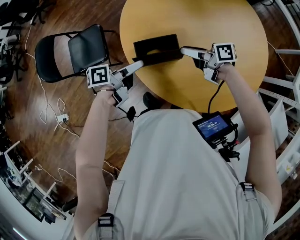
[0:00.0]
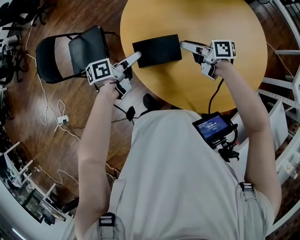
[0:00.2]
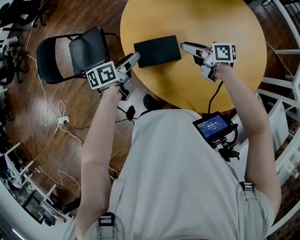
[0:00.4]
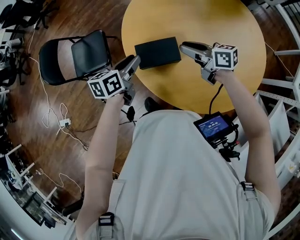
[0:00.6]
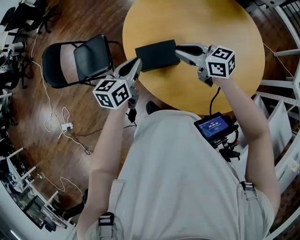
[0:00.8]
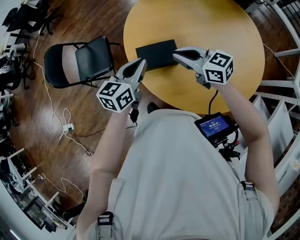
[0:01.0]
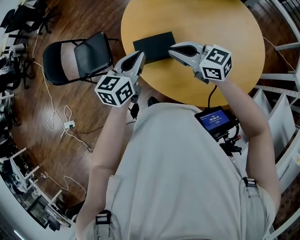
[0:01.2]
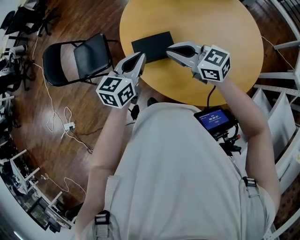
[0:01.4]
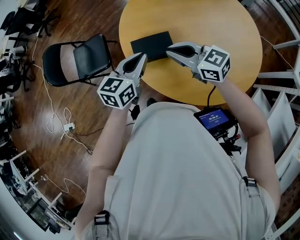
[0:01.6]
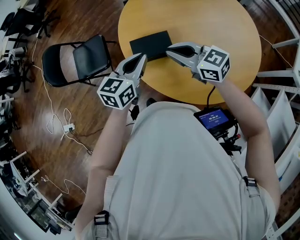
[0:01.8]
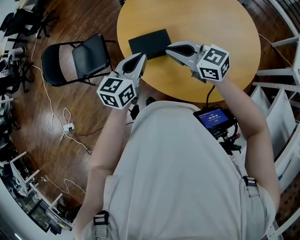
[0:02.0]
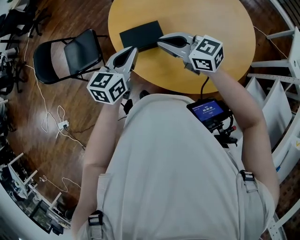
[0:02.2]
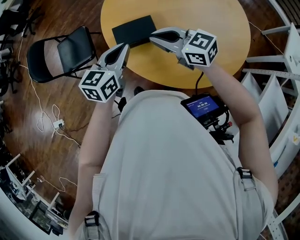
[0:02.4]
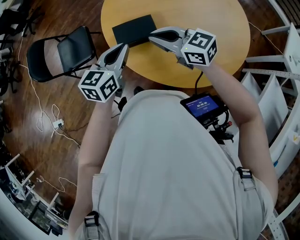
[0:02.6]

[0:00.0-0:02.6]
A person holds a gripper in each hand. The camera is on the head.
0:00.0 to 0:01.2: Both grippers move upward, about 10 cm. The left gripper twists roughly 50 degrees clockwise, seen from behind, and closes its fingers; the right gripper rotates around the line of its fingers by roughly 50 degrees, counterclockwise from behind, and closes up.
0:01.2 to 0:02.6: The grippers move only a little.

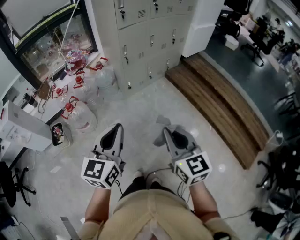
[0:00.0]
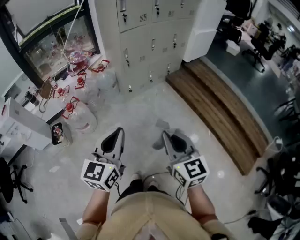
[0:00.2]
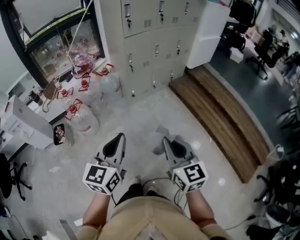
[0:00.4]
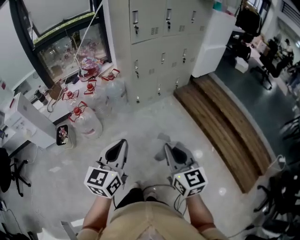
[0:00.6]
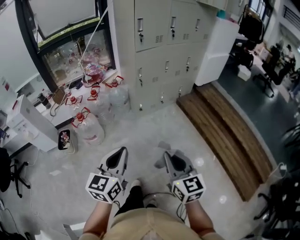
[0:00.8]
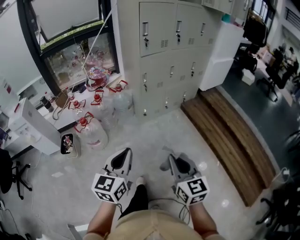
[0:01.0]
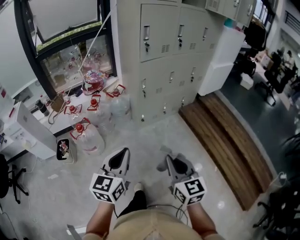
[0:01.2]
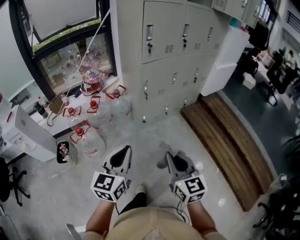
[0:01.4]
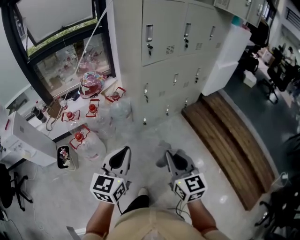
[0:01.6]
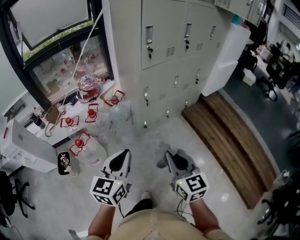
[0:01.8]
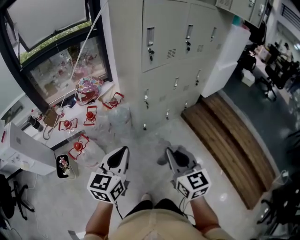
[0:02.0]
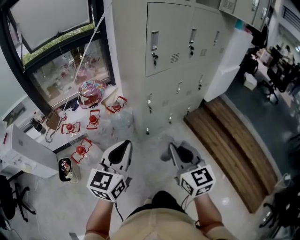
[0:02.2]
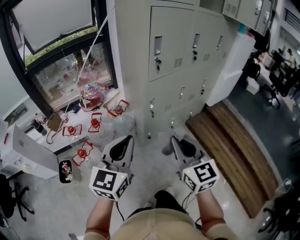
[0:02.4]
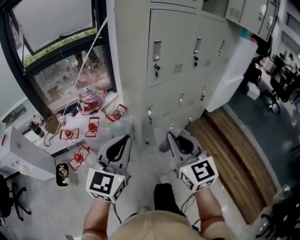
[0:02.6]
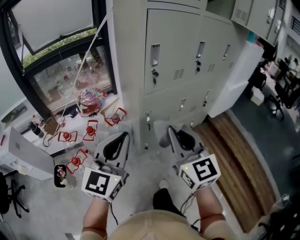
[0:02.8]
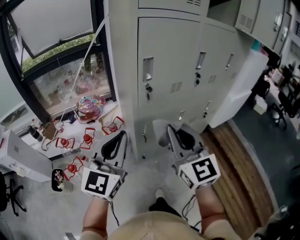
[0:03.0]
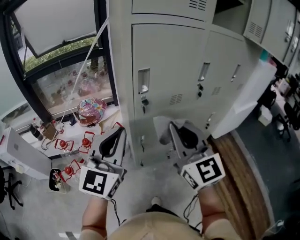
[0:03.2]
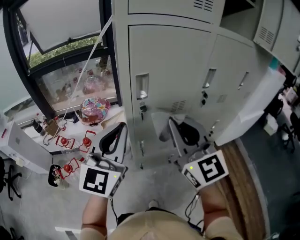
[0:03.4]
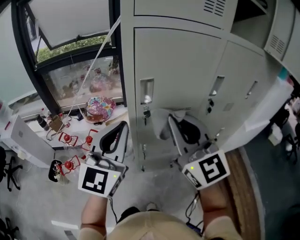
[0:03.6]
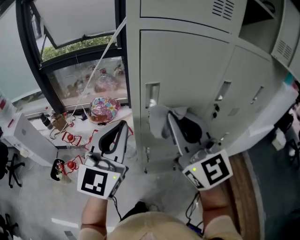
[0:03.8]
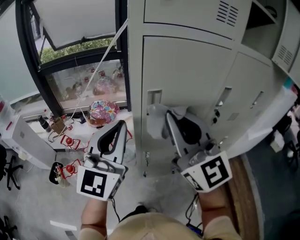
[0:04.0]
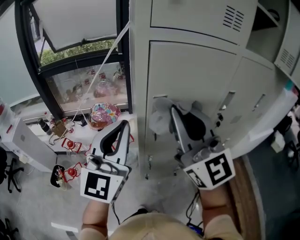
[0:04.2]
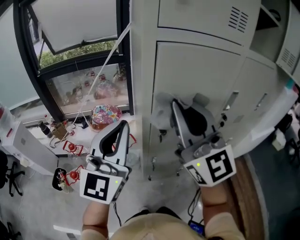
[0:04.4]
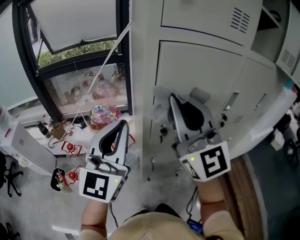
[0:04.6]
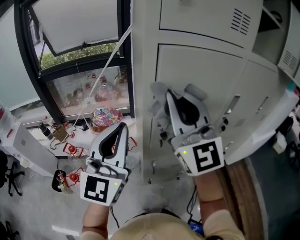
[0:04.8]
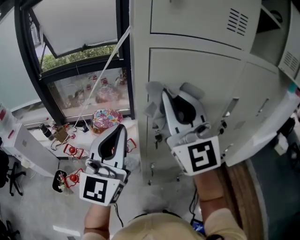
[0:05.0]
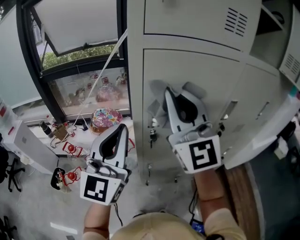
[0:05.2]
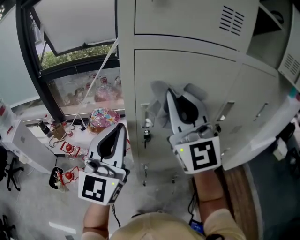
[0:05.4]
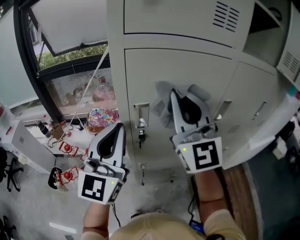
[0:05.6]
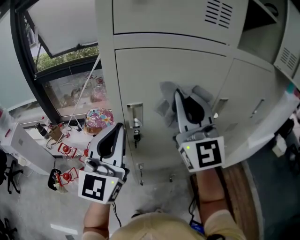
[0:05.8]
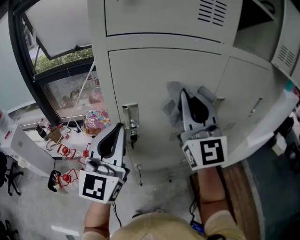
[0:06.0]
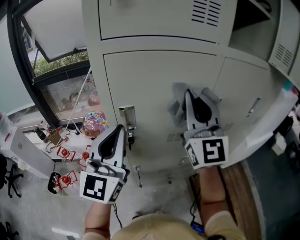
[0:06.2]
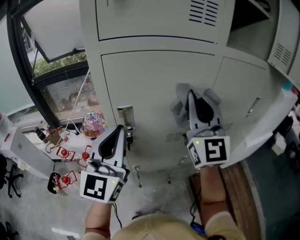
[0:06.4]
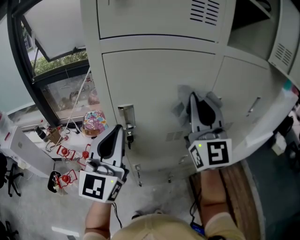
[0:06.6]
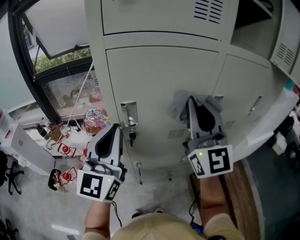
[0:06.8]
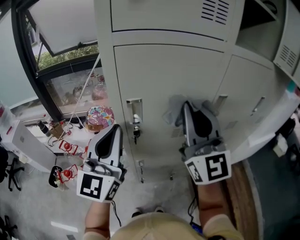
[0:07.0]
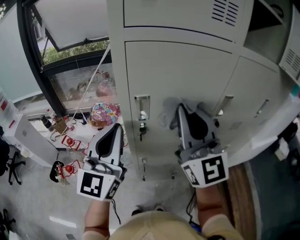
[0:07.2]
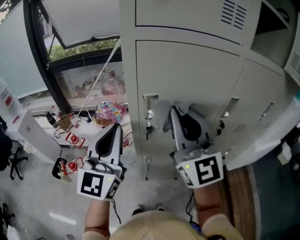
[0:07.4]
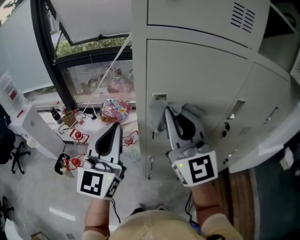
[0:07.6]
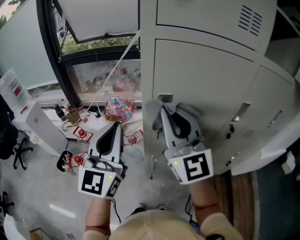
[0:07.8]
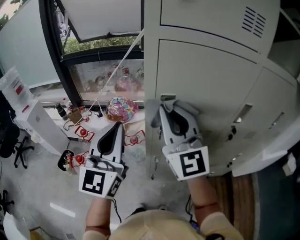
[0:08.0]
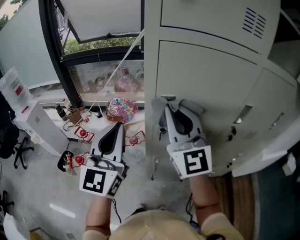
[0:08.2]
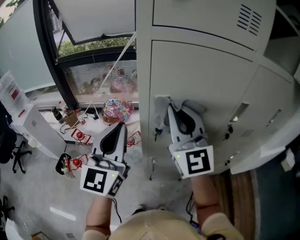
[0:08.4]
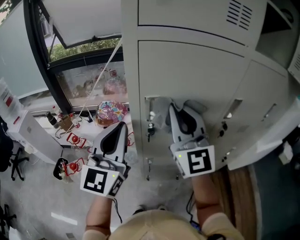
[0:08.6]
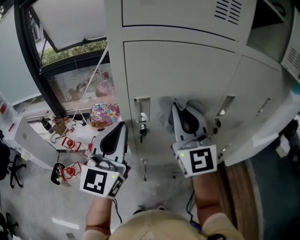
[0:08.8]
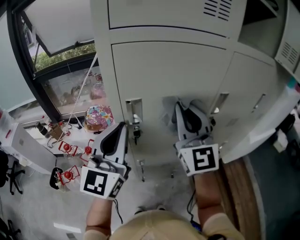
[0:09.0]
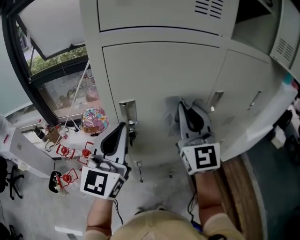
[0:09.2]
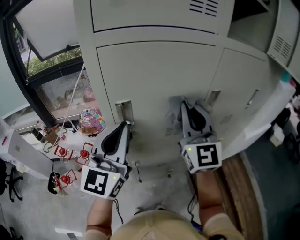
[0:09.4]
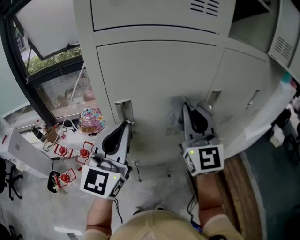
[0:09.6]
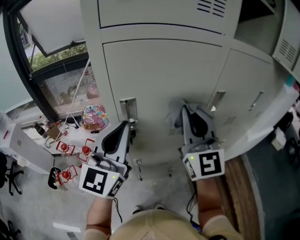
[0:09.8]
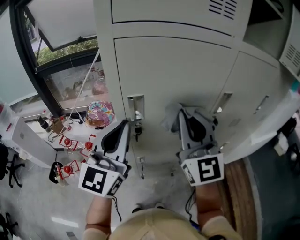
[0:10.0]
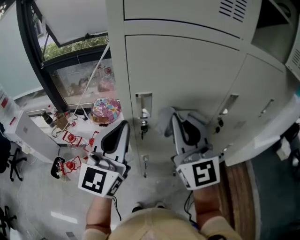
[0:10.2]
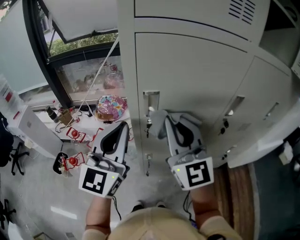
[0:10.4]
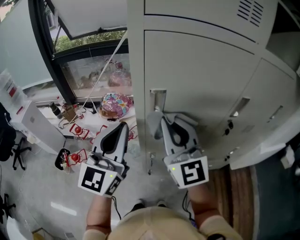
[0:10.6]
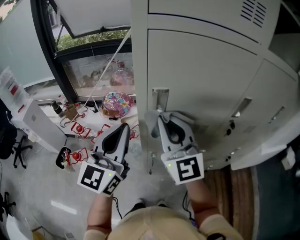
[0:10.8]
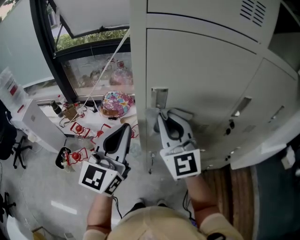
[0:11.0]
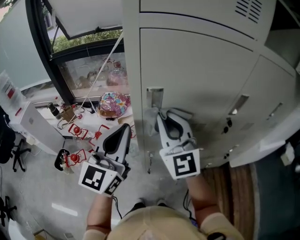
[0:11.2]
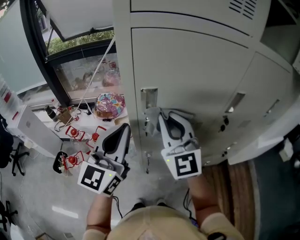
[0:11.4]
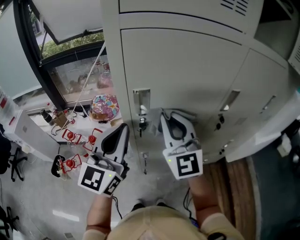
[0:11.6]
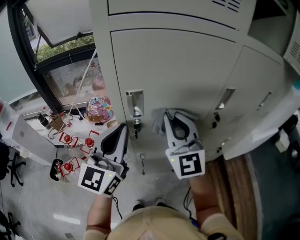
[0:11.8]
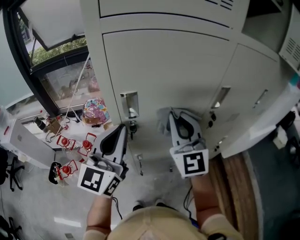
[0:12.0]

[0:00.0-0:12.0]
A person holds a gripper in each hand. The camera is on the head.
0:00.0 to 0:01.6: Both grippers move forward, roughly 20 cm.
0:01.6 to 0:03.0: Both grippers travel together forward and upward, approximately 35 cm. The left gripper rotates some 20 degrees, while the right gripper turns by about 20 degrees.
0:03.0 to 0:04.4: The left gripper moves forward and upward, some 15 cm; the right gripper moves upward and forward, some 20 cm, and changes its angle by about 30 degrees.
0:04.4 to 0:06.0: The left gripper heads to the right, covering some 10 cm, while the right gripper moves to the right and forward, roughly 15 cm.
0:06.0 to 0:07.6: The right gripper is displaced to the left and backward by about 10 cm. Meanwhile the left gripper travels to the left by roughly 10 cm.
0:07.6 to 0:09.0: The grippers both shift to the right by roughly 10 cm.
0:09.0 to 0:10.4: The right gripper is displaced to the left by approximately 5 cm.
0:10.4 to 0:12.0: The right gripper moves to the right, approximately 5 cm, while the left gripper changes place by approximately 5 cm.

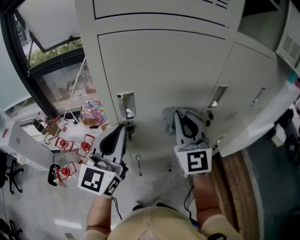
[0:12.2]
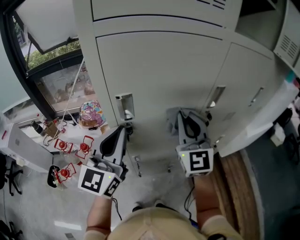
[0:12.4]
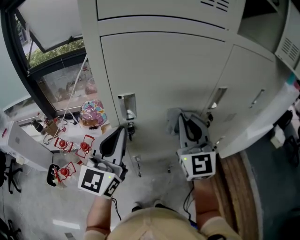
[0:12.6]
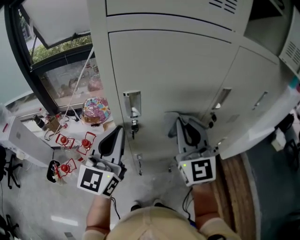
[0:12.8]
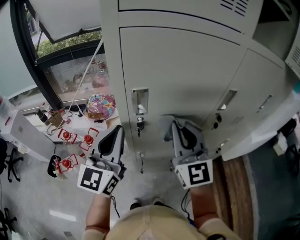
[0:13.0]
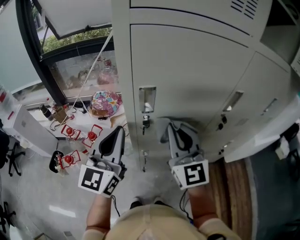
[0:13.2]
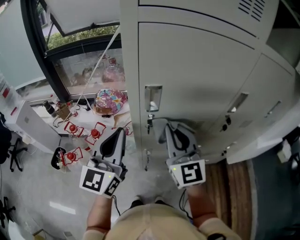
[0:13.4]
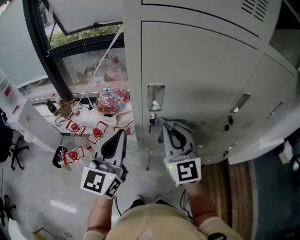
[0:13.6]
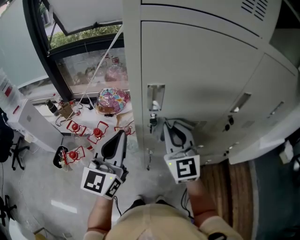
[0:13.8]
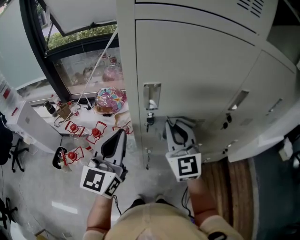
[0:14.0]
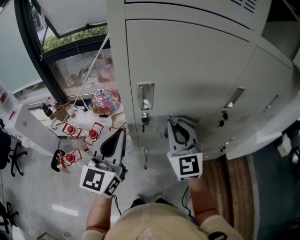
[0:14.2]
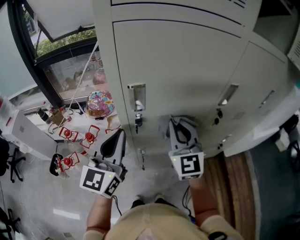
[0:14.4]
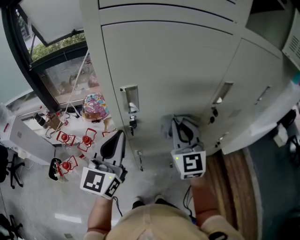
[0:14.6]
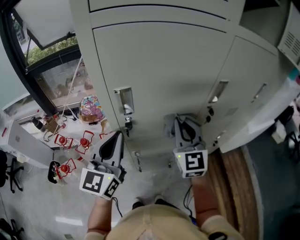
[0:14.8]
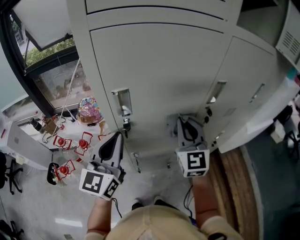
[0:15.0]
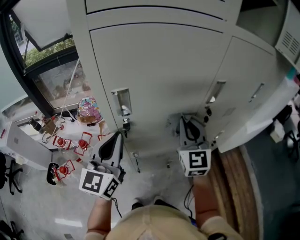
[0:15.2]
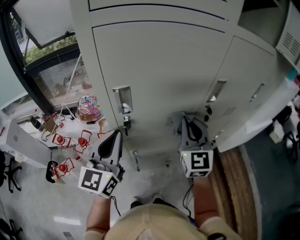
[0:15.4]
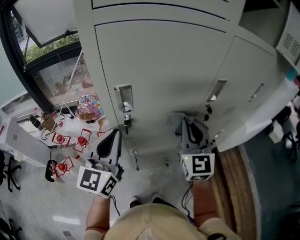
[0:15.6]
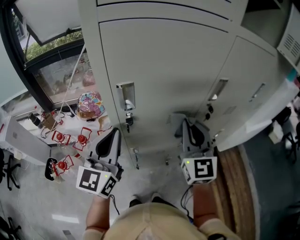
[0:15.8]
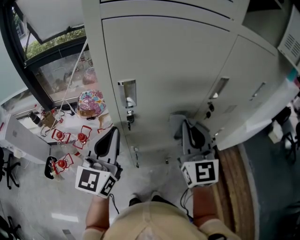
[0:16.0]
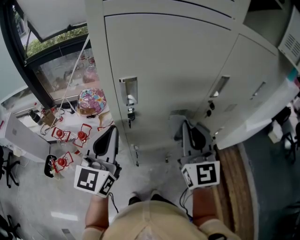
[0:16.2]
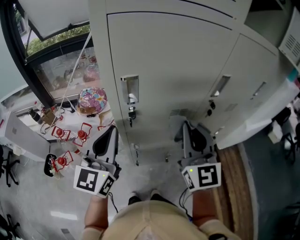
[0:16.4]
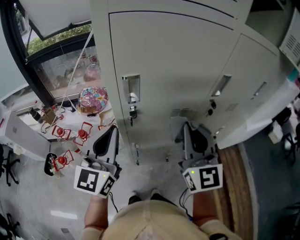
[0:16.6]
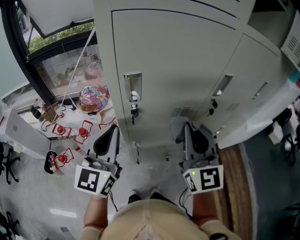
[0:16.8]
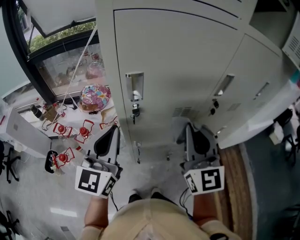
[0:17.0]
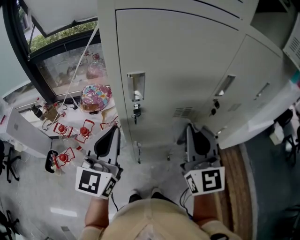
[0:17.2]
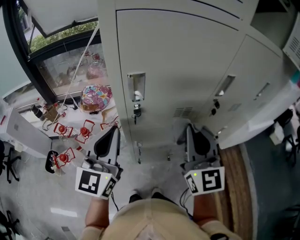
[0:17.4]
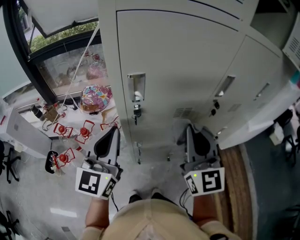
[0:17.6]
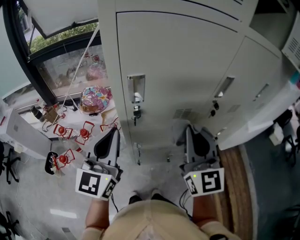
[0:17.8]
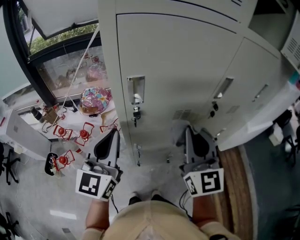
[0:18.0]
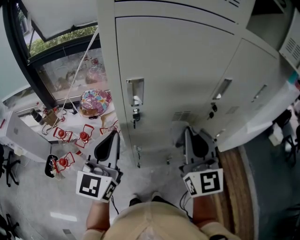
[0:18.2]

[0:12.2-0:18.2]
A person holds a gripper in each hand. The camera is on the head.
0:12.2 to 0:13.8: The right gripper is displaced to the left and downward by approximately 10 cm. Meanwhile the left gripper shifts about 5 cm to the left.
0:13.8 to 0:15.2: The left gripper shifts roughly 5 cm to the right, while the right gripper heads to the right, covering some 15 cm, and turns by approximately 20 degrees.
0:15.2 to 0:16.6: The right gripper shifts approximately 10 cm backward.
0:16.6 to 0:18.2: Neither gripper changes place.

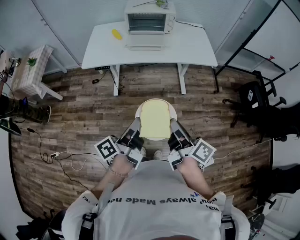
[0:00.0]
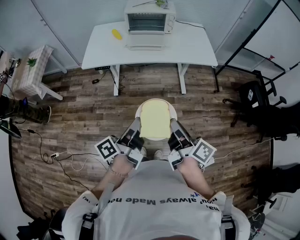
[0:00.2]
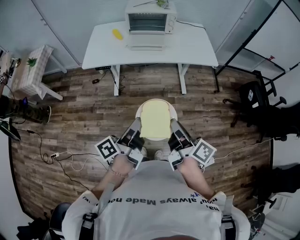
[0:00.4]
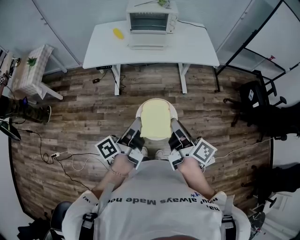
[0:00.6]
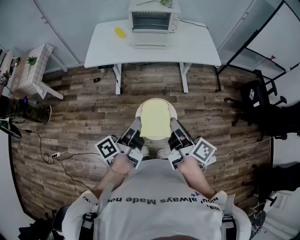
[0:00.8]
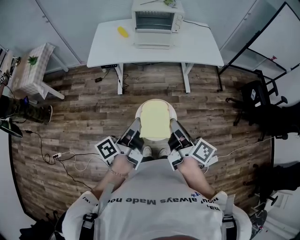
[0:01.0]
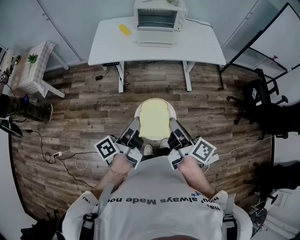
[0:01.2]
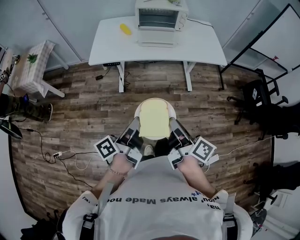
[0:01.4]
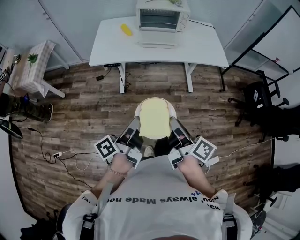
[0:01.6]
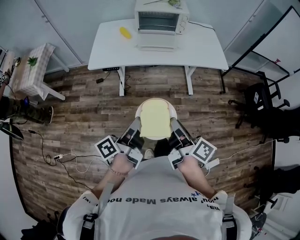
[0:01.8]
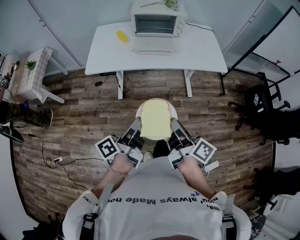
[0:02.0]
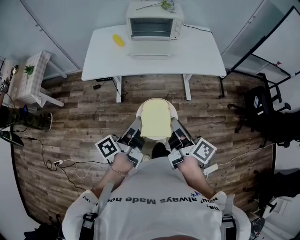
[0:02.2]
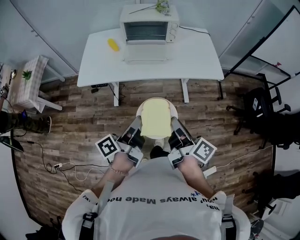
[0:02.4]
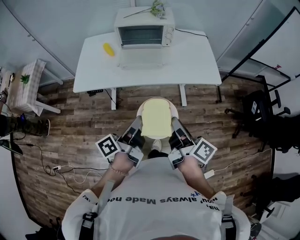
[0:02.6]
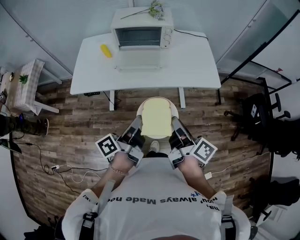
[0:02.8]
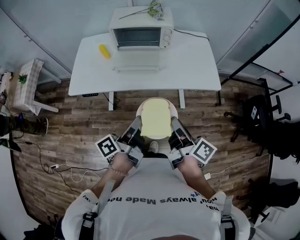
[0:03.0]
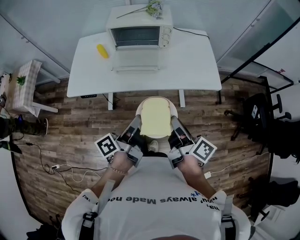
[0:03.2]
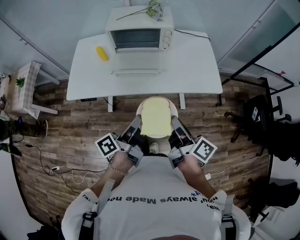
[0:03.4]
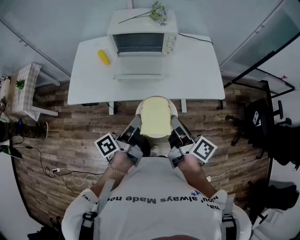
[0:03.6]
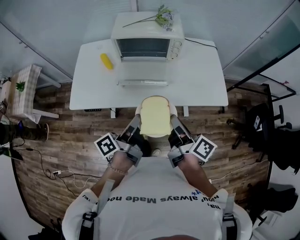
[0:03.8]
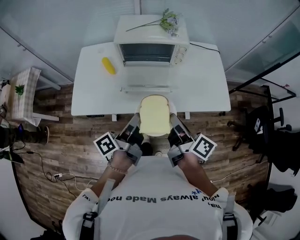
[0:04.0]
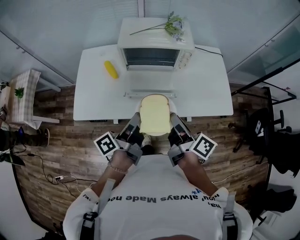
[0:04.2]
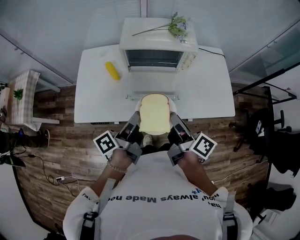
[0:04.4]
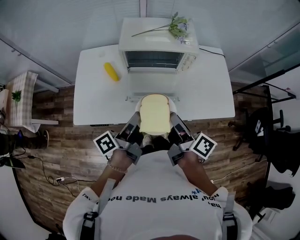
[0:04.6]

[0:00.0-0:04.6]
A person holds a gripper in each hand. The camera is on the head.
0:00.0 to 0:01.6: The right gripper ends up about 10 cm from where it was.
0:01.6 to 0:03.0: The right gripper moves approximately 30 cm.
0:03.0 to 0:04.6: The right gripper moves about 30 cm.
